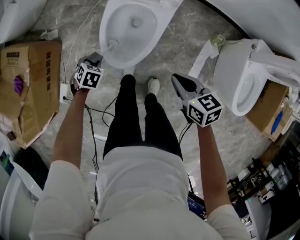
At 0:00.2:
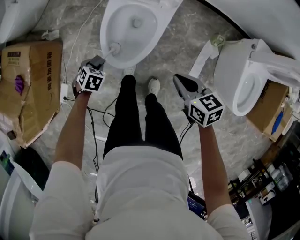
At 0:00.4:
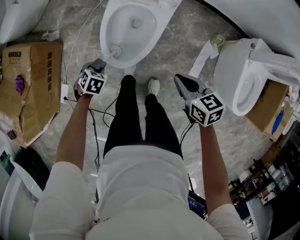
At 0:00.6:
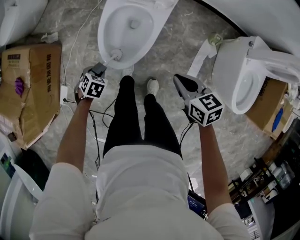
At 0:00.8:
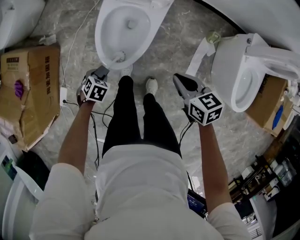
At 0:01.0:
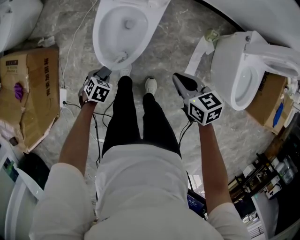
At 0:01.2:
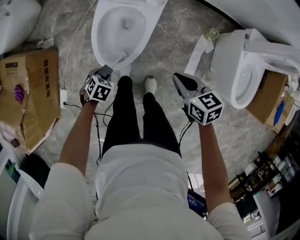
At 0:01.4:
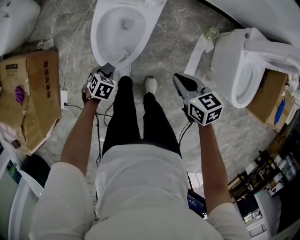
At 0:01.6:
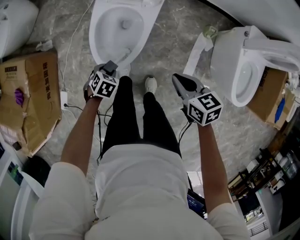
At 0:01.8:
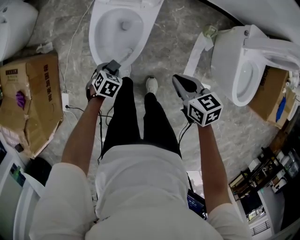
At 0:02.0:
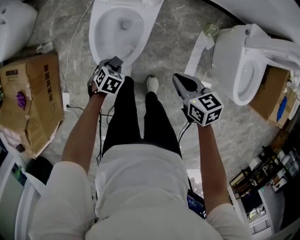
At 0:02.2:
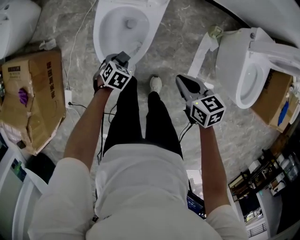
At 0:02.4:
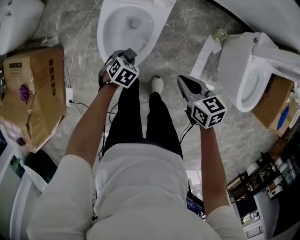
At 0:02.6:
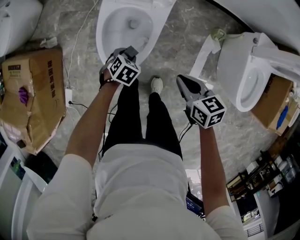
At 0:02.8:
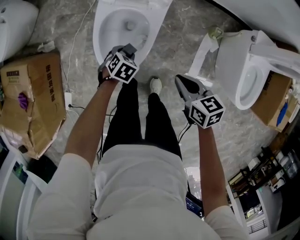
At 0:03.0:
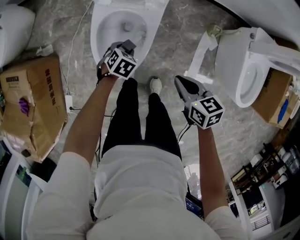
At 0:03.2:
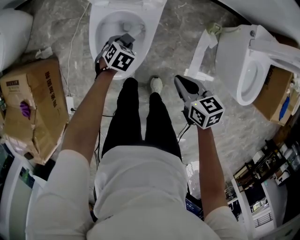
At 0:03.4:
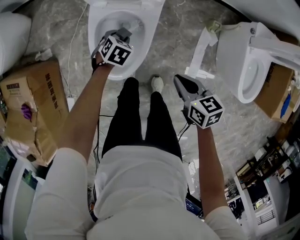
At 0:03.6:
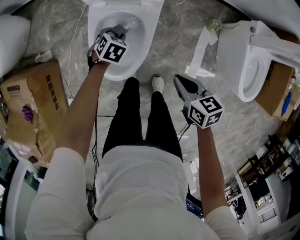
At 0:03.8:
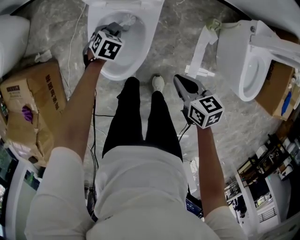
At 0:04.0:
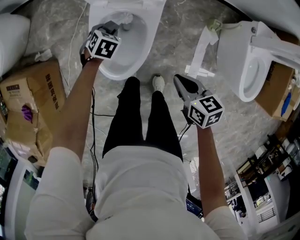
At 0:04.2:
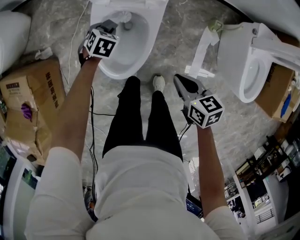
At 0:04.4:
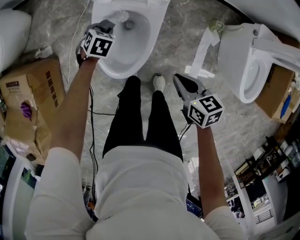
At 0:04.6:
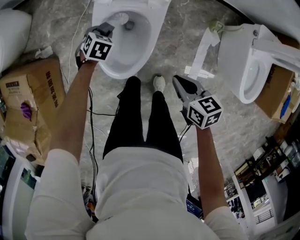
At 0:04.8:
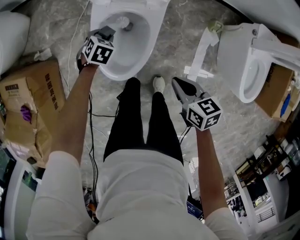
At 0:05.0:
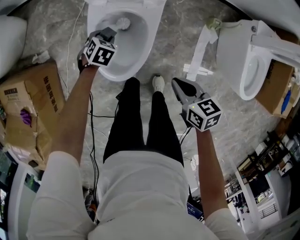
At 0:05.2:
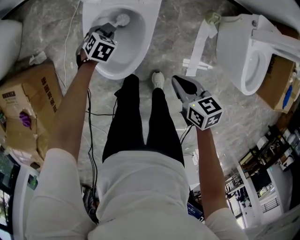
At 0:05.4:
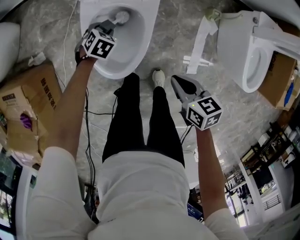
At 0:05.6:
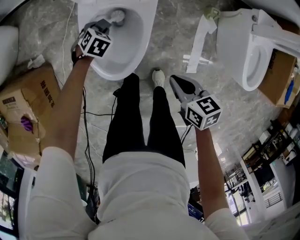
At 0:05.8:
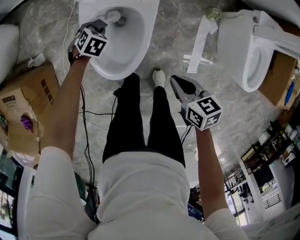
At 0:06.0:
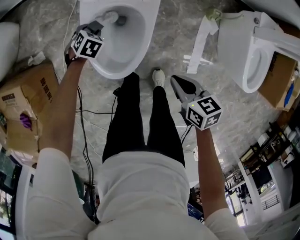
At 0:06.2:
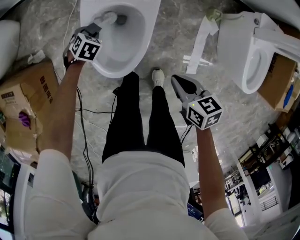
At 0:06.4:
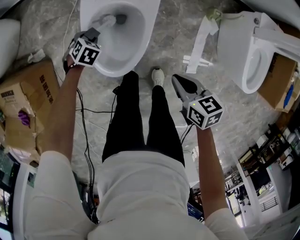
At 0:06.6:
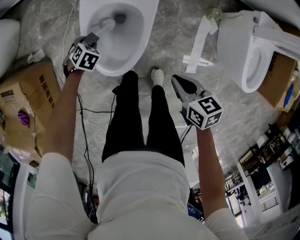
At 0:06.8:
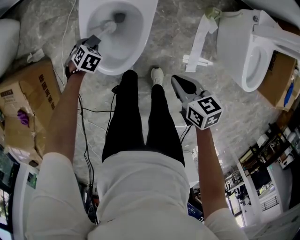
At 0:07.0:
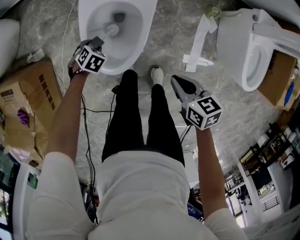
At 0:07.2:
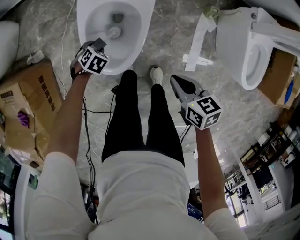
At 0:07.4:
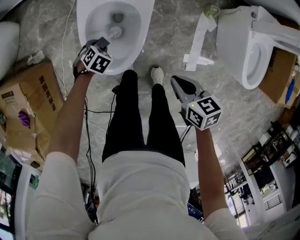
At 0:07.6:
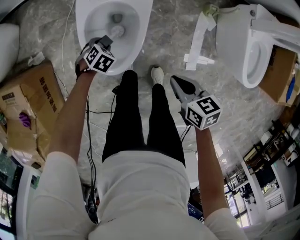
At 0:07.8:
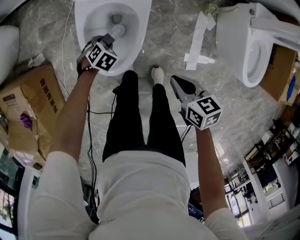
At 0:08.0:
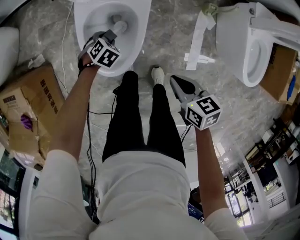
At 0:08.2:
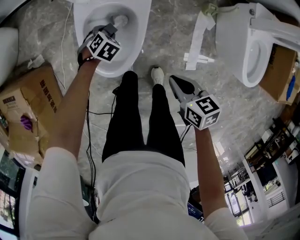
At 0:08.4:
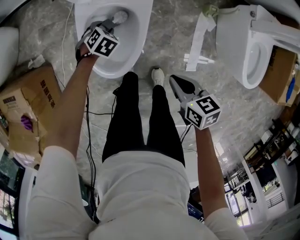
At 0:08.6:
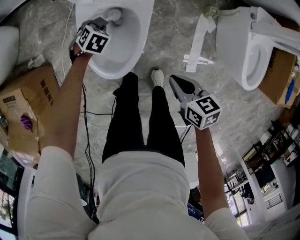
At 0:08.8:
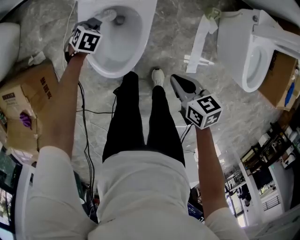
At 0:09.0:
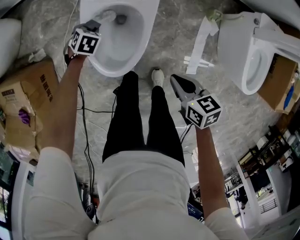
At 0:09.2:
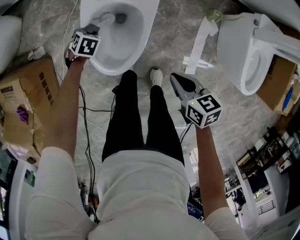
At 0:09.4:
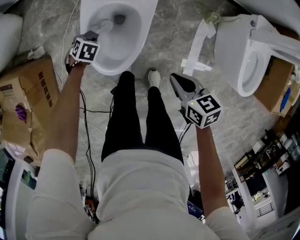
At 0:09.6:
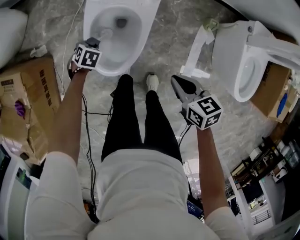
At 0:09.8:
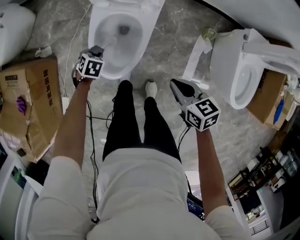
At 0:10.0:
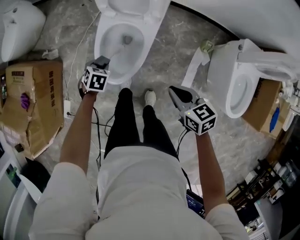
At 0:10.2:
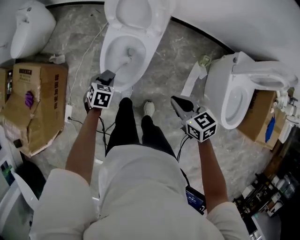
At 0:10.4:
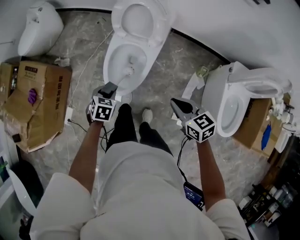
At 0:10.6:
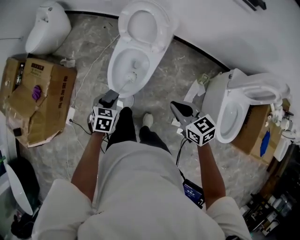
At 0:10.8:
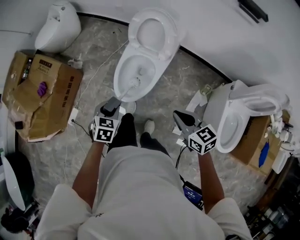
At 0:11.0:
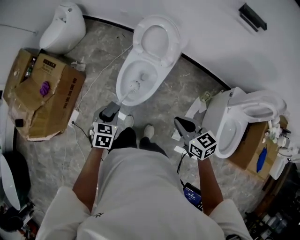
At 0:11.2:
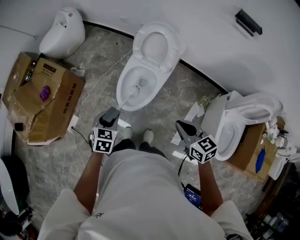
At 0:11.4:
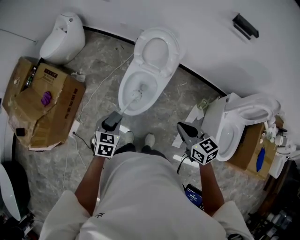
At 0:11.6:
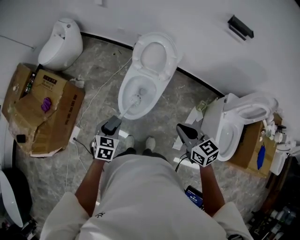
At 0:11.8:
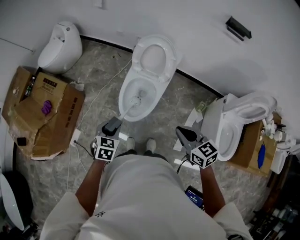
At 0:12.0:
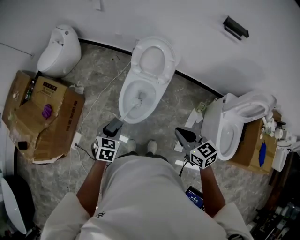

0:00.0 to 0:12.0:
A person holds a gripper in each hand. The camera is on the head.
0:00.0 to 0:01.6: The left gripper moves about 15 cm, while the right gripper shifts by about 5 cm.
0:01.6 to 0:03.0: The left gripper ends up about 15 cm from where it was. Meanwhile the right gripper shifts by roughly 5 cm.
0:03.0 to 0:04.4: The left gripper heads forward and to the left, covering roughly 15 cm.
0:04.4 to 0:06.0: The left gripper travels downward by approximately 5 cm.
0:06.0 to 0:07.6: The left gripper moves approximately 10 cm.
0:07.6 to 0:09.0: The left gripper shifts by approximately 15 cm.
0:09.0 to 0:10.4: The right gripper is displaced upward by about 20 cm, and rotates some 30 degrees. Meanwhile the left gripper changes place by approximately 35 cm, and rotates approximately 30 degrees.
0:10.4 to 0:12.0: The right gripper moves upward and to the left, roughly 15 cm. Meanwhile the left gripper heads upward, to the left and backward, covering about 20 cm.

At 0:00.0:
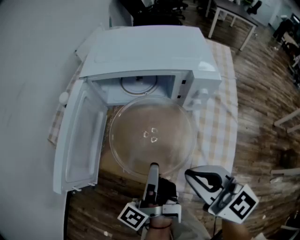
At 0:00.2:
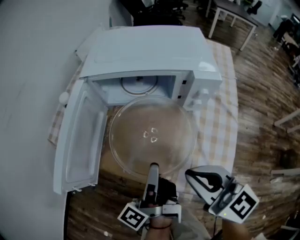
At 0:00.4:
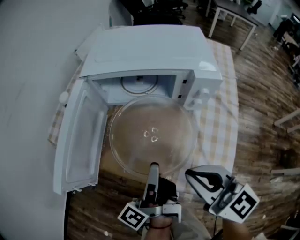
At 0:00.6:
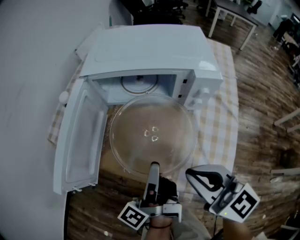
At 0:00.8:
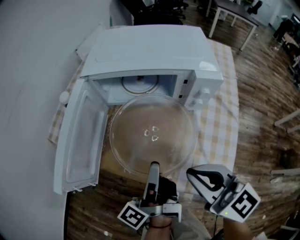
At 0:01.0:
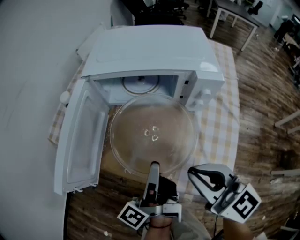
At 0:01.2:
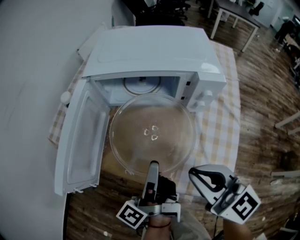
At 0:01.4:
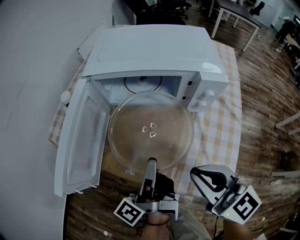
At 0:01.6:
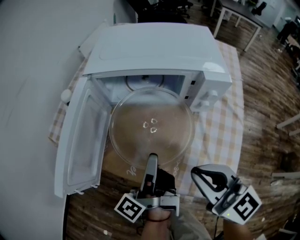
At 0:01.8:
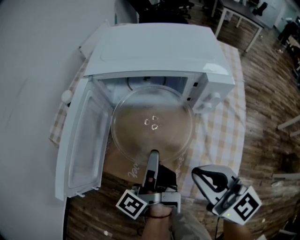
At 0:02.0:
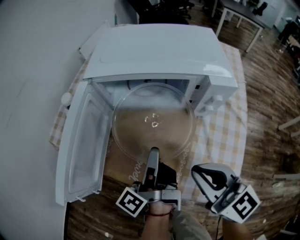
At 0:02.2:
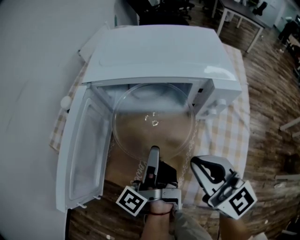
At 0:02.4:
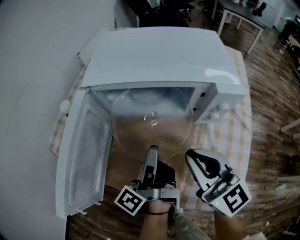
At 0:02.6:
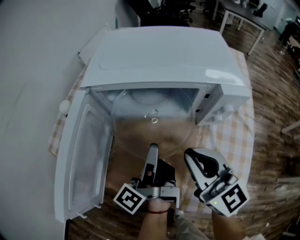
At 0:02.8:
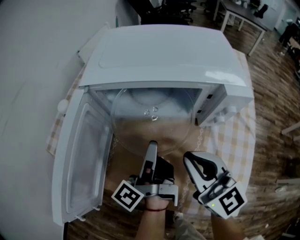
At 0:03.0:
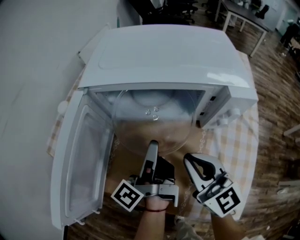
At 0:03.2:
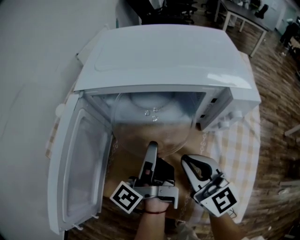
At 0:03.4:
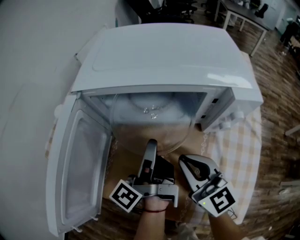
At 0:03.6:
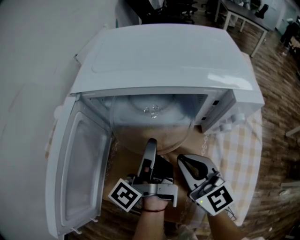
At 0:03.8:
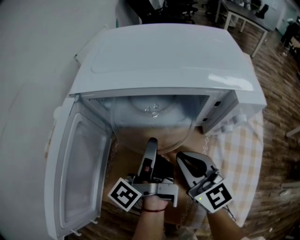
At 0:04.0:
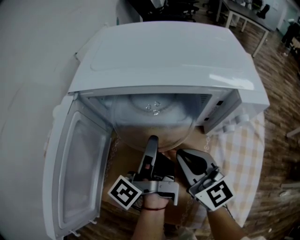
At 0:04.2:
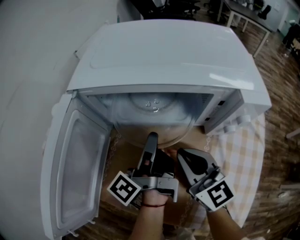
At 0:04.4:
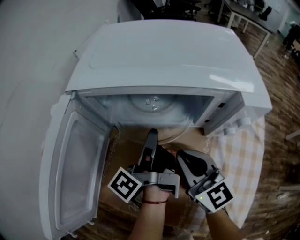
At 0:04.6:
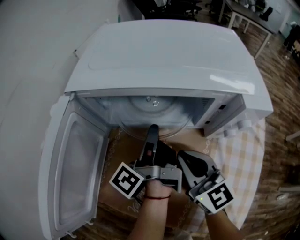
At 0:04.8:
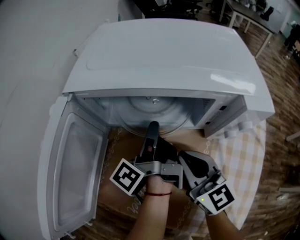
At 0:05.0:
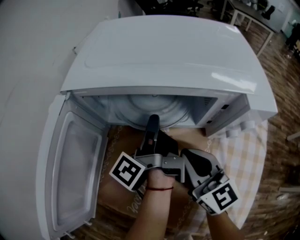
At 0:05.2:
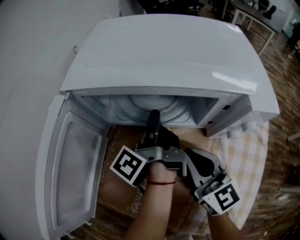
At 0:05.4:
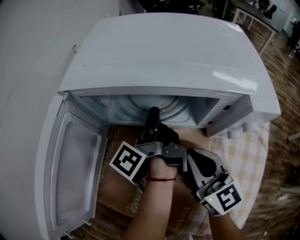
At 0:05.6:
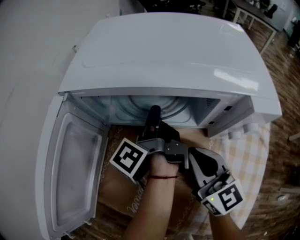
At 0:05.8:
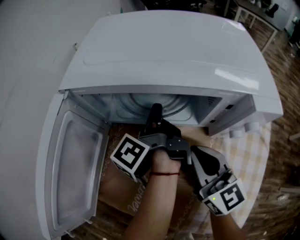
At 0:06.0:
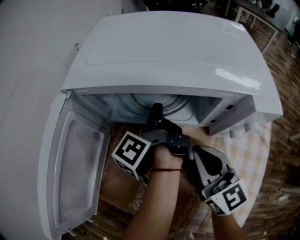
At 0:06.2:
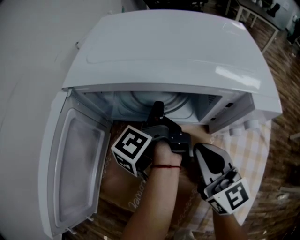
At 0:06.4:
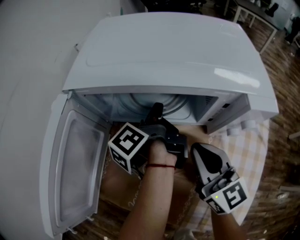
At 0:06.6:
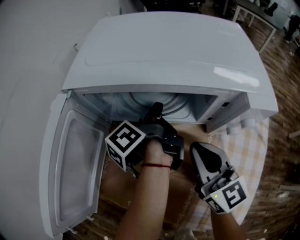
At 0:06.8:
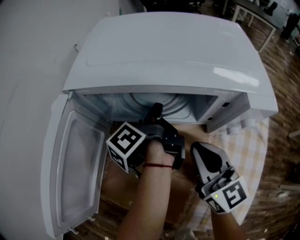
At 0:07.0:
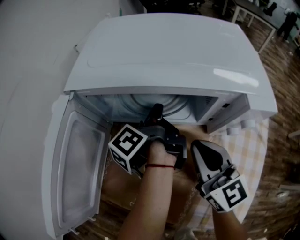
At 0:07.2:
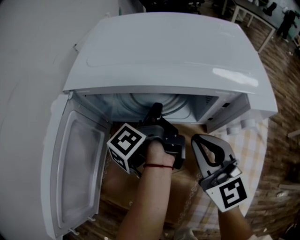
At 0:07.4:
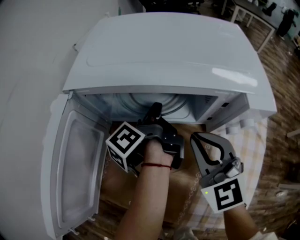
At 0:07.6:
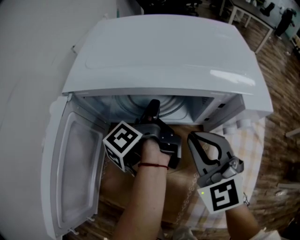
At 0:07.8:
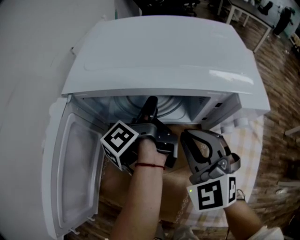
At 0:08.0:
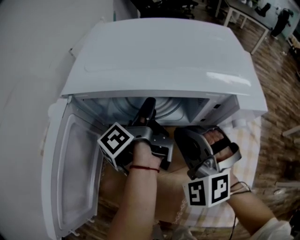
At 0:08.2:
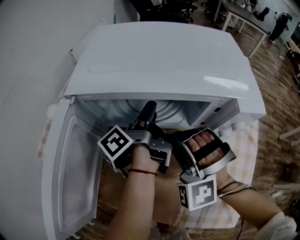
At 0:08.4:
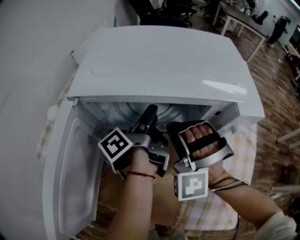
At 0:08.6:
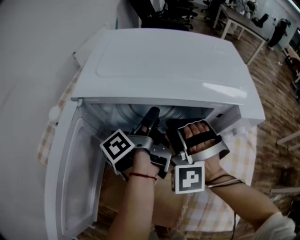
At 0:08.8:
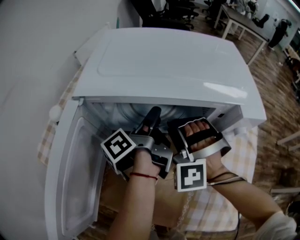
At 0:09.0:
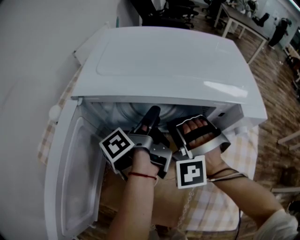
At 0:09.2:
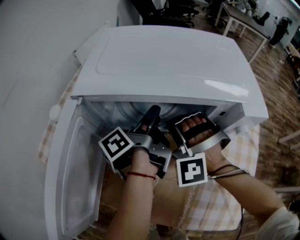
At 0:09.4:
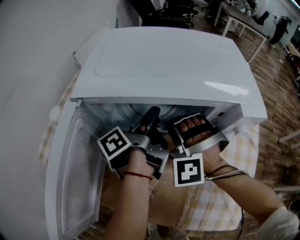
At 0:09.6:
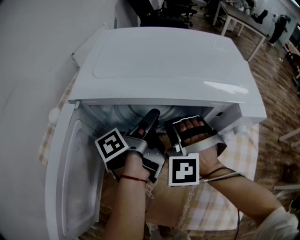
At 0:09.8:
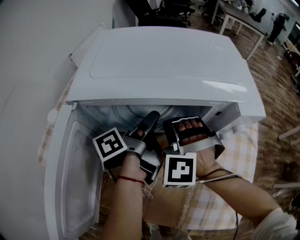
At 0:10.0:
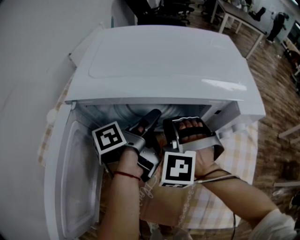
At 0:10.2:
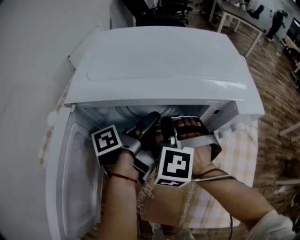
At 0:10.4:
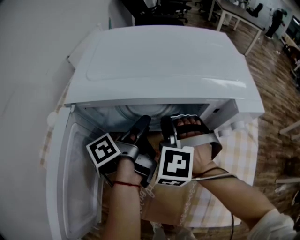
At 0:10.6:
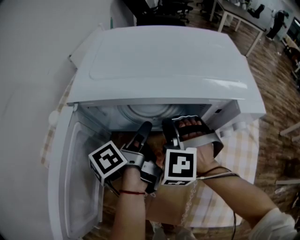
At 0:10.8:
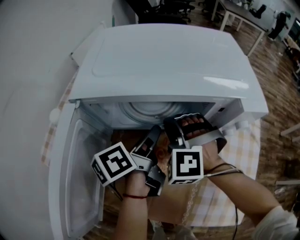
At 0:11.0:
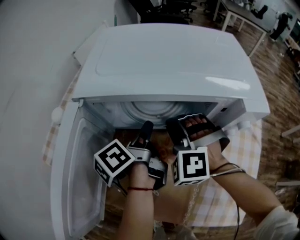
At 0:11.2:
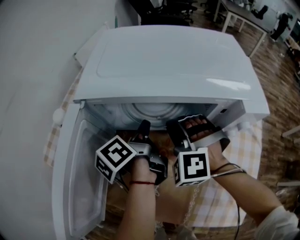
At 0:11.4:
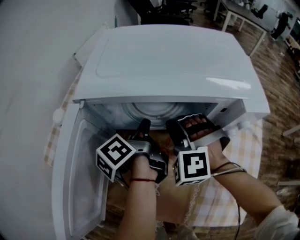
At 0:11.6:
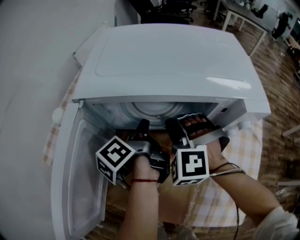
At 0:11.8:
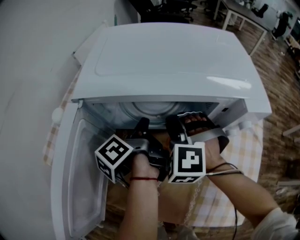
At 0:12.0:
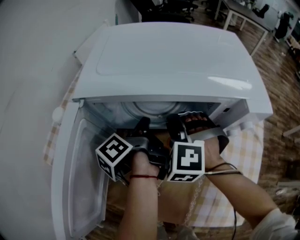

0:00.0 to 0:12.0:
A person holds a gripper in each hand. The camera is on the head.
0:01.6 to 0:03.0: The right gripper ends up approximately 15 cm from where it was.
0:03.0 to 0:04.4: The right gripper shifts roughly 5 cm downward.
0:06.0 to 0:07.6: The right gripper rotates about 40 degrees.
0:07.6 to 0:09.0: The right gripper ends up some 10 cm from where it was, and rolls counterclockwise, seen from behind, by approximately 60 degrees.
0:09.0 to 0:10.4: The right gripper swivels approximately 20 degrees.
